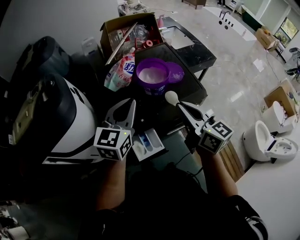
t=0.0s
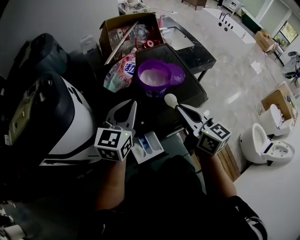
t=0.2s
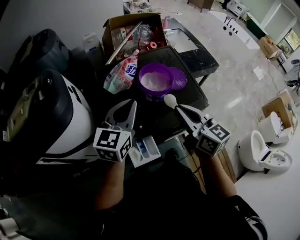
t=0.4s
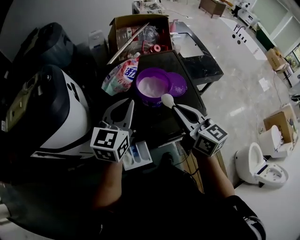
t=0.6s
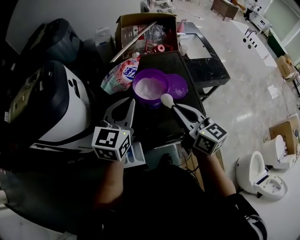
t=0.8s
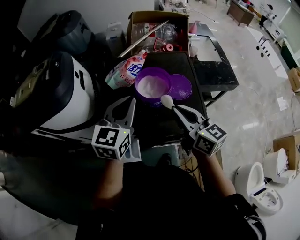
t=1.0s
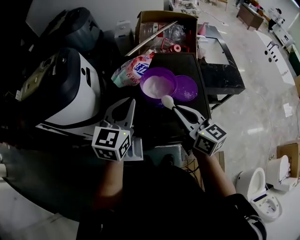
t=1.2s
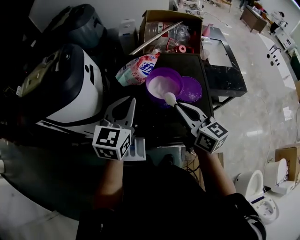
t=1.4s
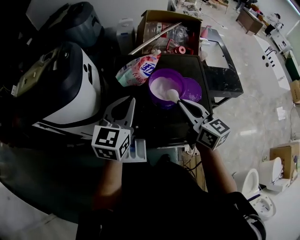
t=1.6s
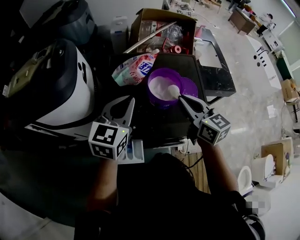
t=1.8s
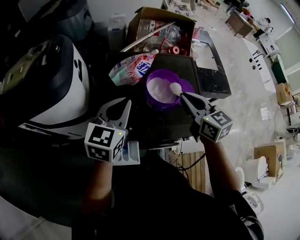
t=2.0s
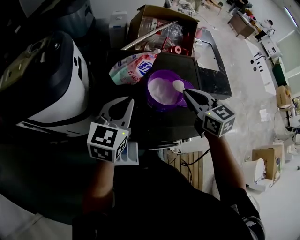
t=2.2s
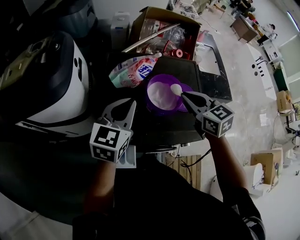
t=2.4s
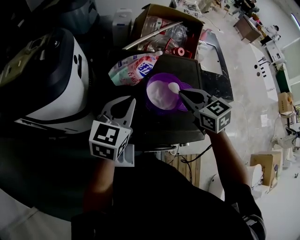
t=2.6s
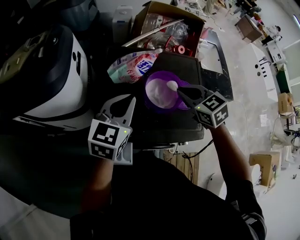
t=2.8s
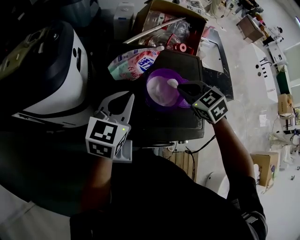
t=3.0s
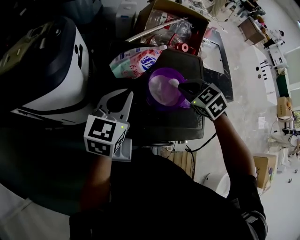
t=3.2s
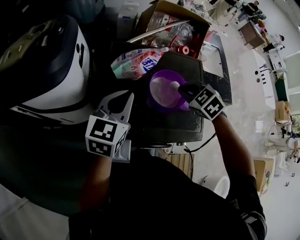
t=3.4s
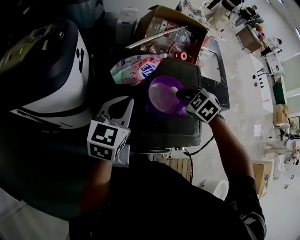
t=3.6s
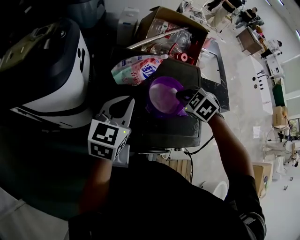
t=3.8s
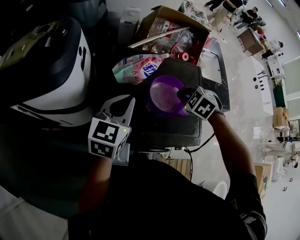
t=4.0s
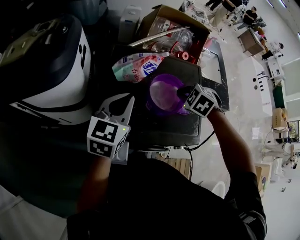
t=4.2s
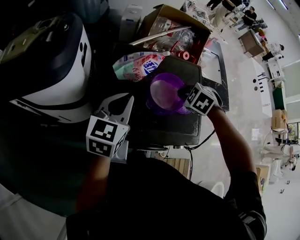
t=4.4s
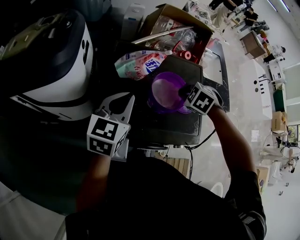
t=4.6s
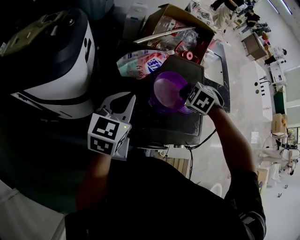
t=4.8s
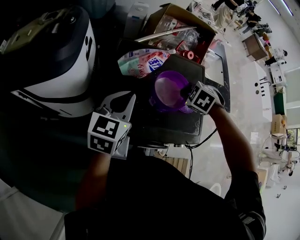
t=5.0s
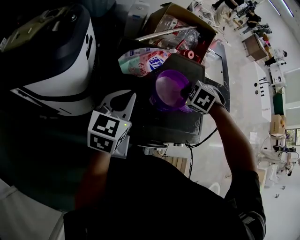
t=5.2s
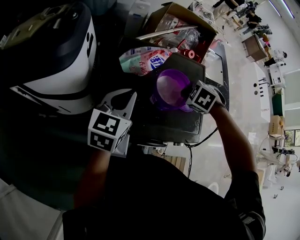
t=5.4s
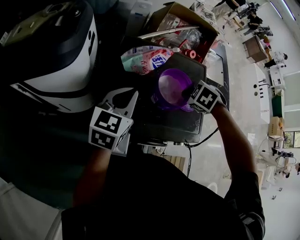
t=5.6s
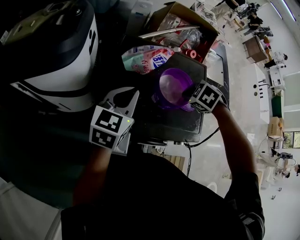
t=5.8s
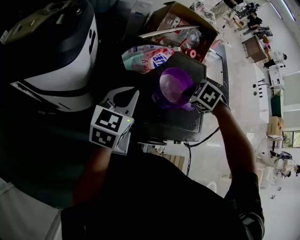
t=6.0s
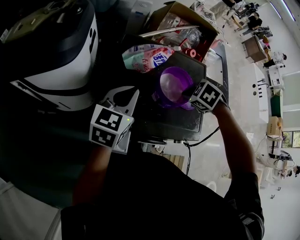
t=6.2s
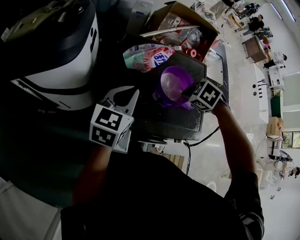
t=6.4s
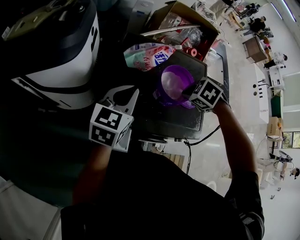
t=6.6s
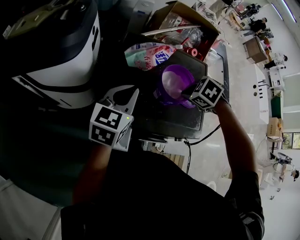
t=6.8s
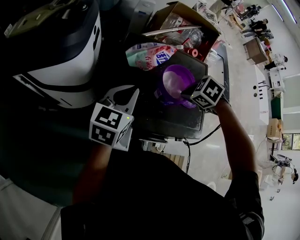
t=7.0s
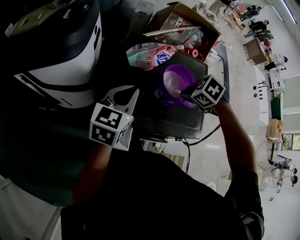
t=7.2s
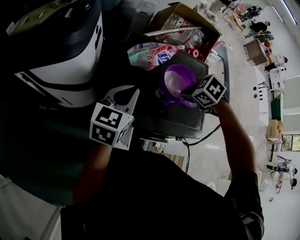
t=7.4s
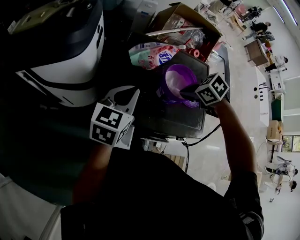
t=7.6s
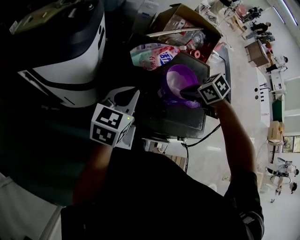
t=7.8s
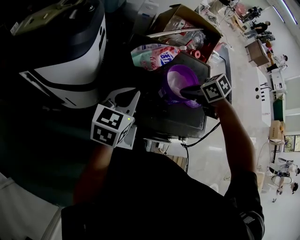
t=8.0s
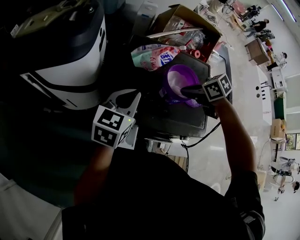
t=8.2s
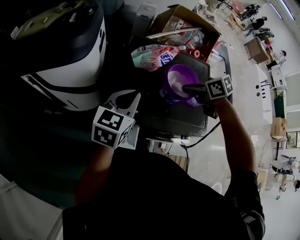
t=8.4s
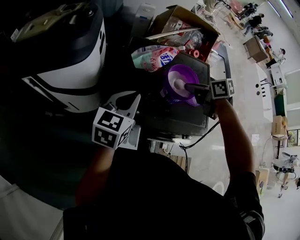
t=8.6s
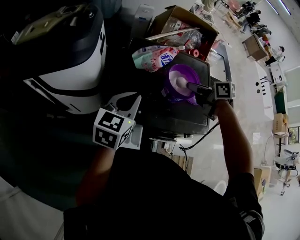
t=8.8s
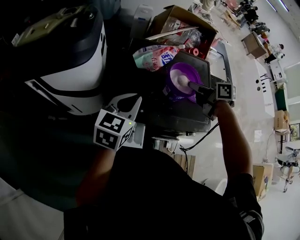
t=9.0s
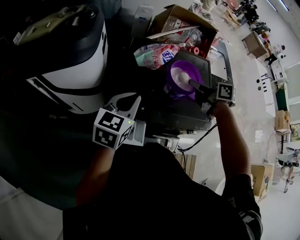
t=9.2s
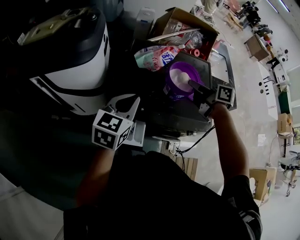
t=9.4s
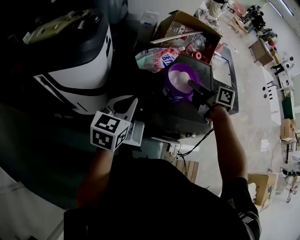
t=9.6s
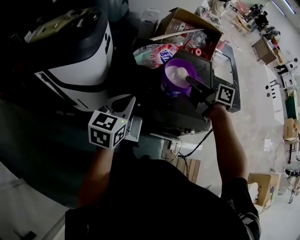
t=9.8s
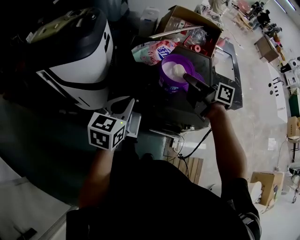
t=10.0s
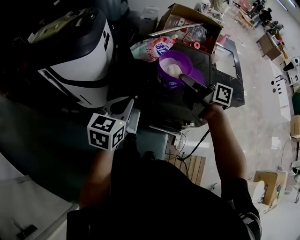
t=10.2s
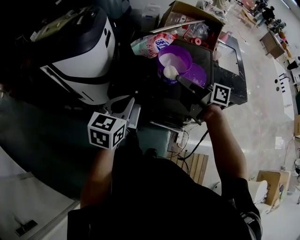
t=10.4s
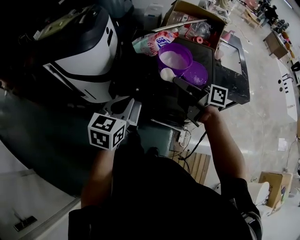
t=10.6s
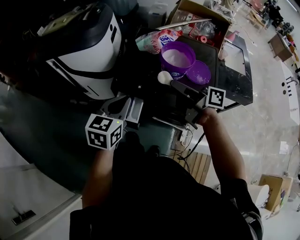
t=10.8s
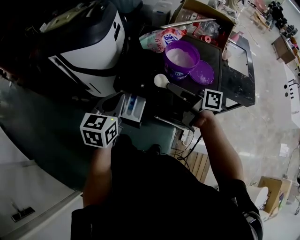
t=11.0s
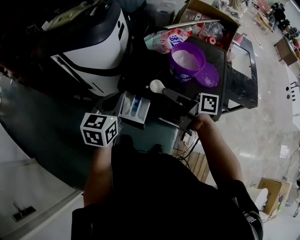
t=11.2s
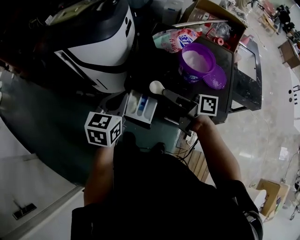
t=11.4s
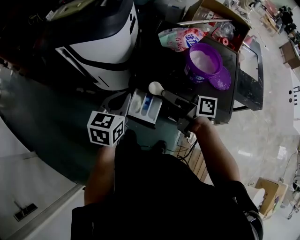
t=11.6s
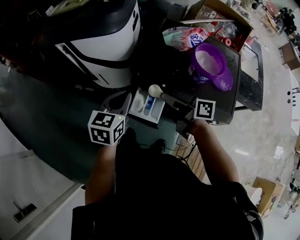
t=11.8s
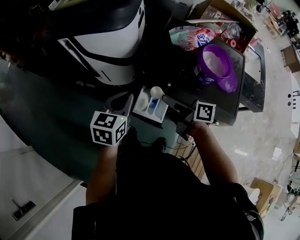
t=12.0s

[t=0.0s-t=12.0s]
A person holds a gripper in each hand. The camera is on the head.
t=0.0s to t=1.6s: The right gripper heads forward, covering approximately 15 cm, and changes its angle by approximately 20 degrees, while the left gripper travels forward by some 5 cm, goes to the right and returns, some 5 cm each way, and turns by about 20 degrees.
t=1.6s to t=3.0s: The right gripper is displaced forward and downward by some 10 cm, and tilts its fingers approximately 40 degrees downward, while the left gripper moves about 5 cm.
t=3.0s to t=4.4s: The right gripper shifts roughly 5 cm downward, and changes its angle by roughly 30 degrees.
t=4.4s to t=6.0s: The grippers stay close to where they were, moving slightly.
t=6.0s to t=7.6s: The right gripper changes its angle by approximately 20 degrees.
t=7.6s to t=9.0s: The right gripper angles its fingers upward, by roughly 40 degrees.
t=9.0s to t=10.4s: The right gripper travels backward and upward by some 10 cm, and points its fingers some 30 degrees further upward. The left gripper is displaced backward by some 10 cm.
t=10.4s to t=12.0s: Both grippers travel together to the left and downward, some 20 cm.

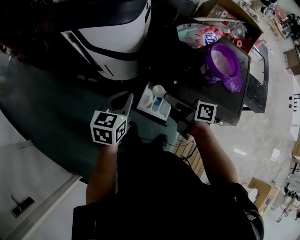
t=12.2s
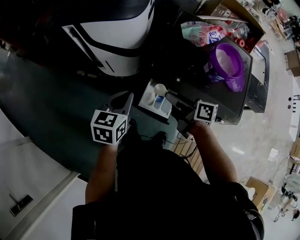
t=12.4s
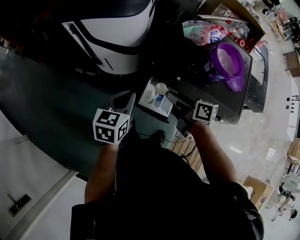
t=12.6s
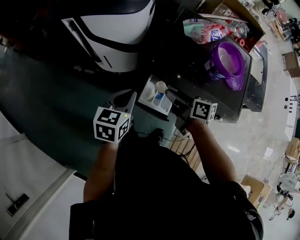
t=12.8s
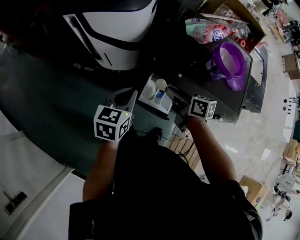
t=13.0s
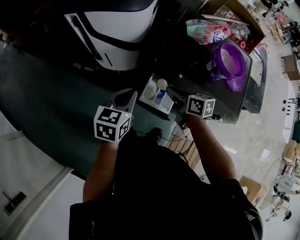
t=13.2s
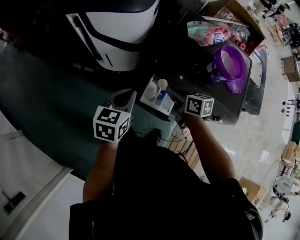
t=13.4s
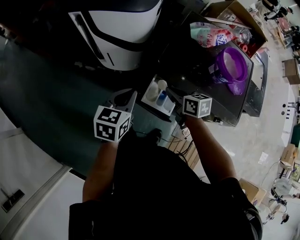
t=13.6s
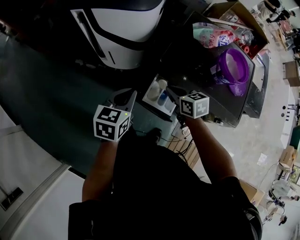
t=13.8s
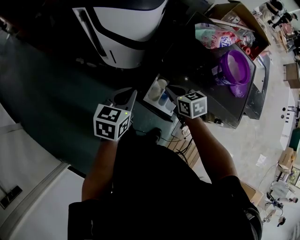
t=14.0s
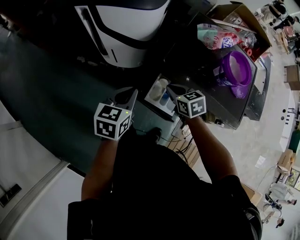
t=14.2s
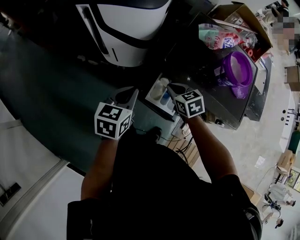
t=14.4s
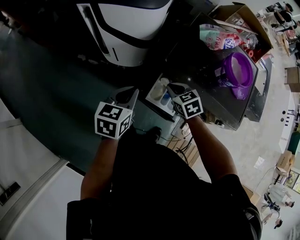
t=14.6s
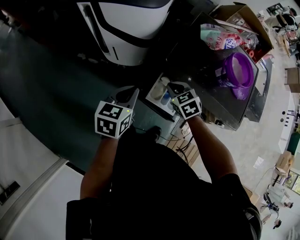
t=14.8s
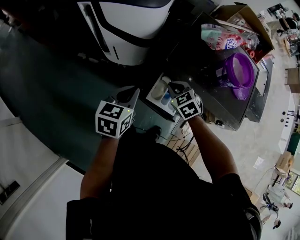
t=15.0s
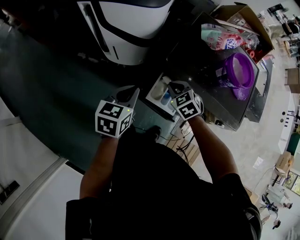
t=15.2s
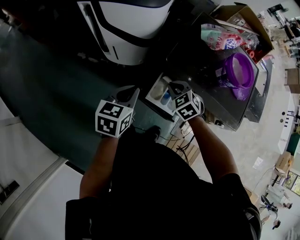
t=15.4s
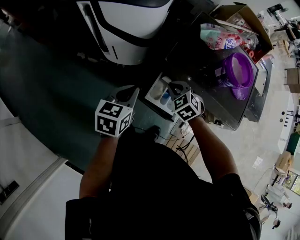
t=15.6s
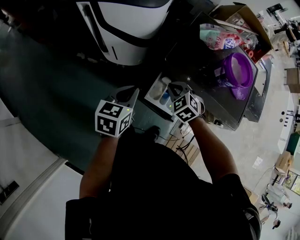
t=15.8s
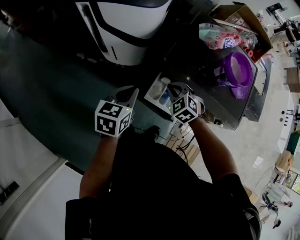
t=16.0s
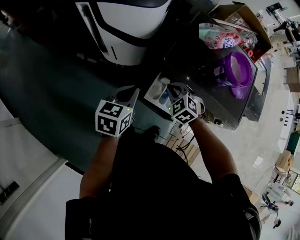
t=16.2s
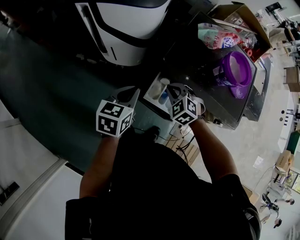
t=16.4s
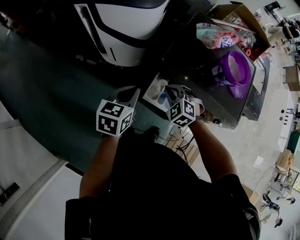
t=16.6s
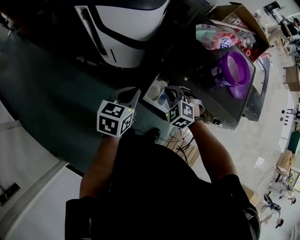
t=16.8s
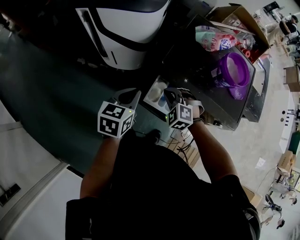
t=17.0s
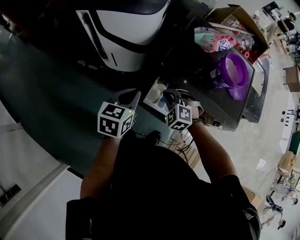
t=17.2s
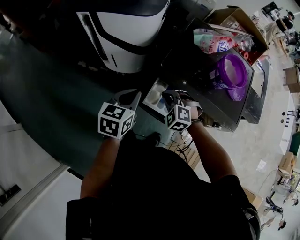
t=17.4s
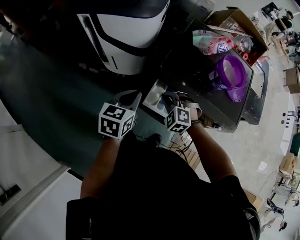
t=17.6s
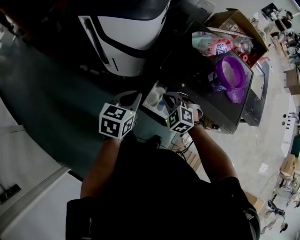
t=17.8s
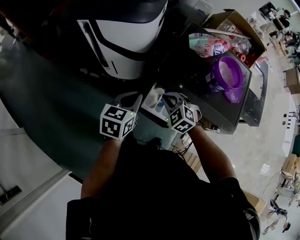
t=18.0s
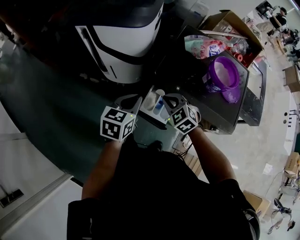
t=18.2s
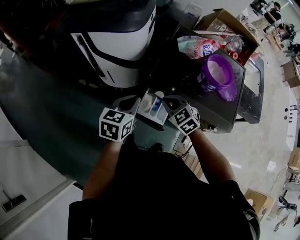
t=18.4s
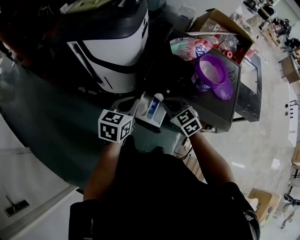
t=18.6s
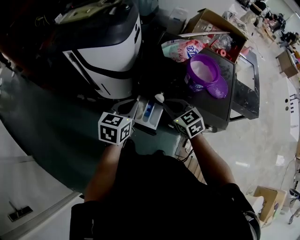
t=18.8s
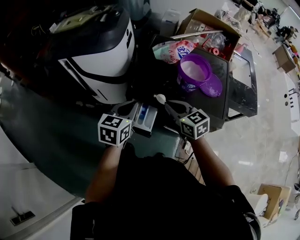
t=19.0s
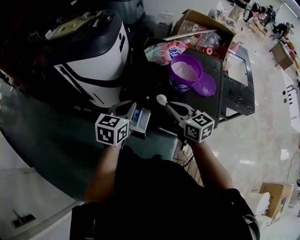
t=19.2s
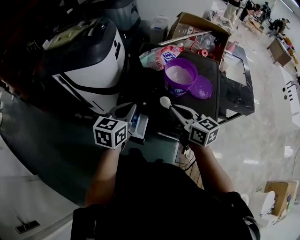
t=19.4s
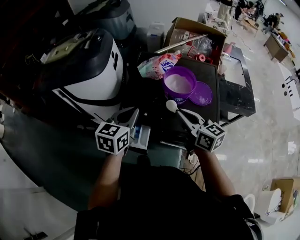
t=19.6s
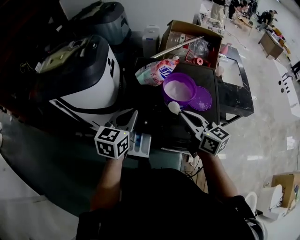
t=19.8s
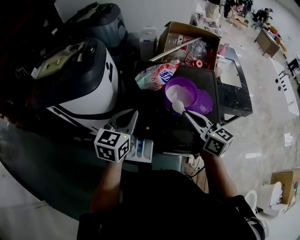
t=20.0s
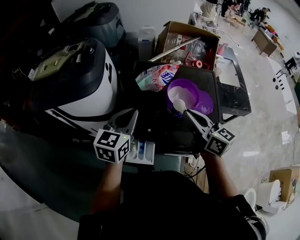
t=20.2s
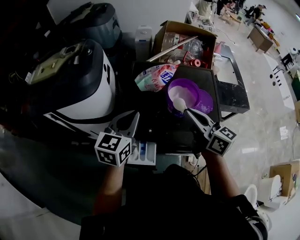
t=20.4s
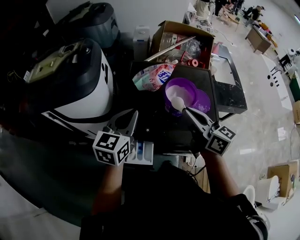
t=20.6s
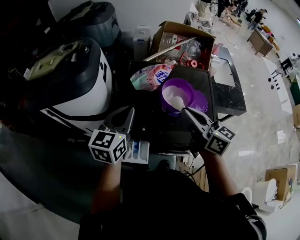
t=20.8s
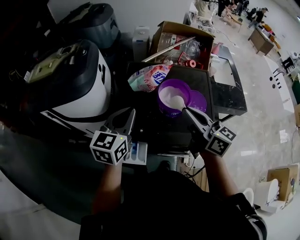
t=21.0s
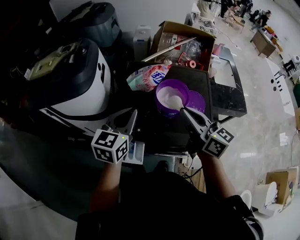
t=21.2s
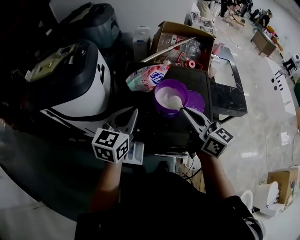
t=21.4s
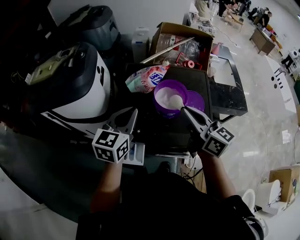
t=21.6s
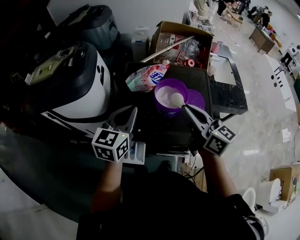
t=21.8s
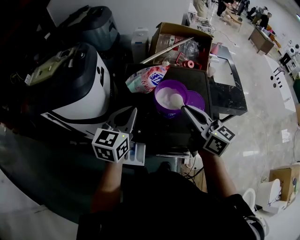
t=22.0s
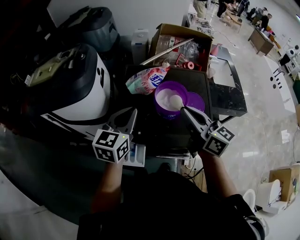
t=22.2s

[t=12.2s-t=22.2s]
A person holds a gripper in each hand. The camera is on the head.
t=12.2s to t=13.6s: The right gripper shifts roughly 10 cm downward, and turns by roughly 40 degrees.
t=13.6s to t=15.0s: The right gripper rolls counterclockwise, seen from behind, by about 40 degrees.
t=15.0s to t=16.4s: The right gripper swivels about 20 degrees.
t=16.4s to t=18.0s: The grippers move only a little.
t=18.0s to t=19.4s: The grippers both shift to the right and upward by about 20 cm. The right gripper rotates around the line of its fingers by about 60 degrees, clockwise from behind.
t=19.4s to t=20.8s: The left gripper heads forward and upward, covering about 10 cm, while the right gripper goes roughly 10 cm upward and forward.
t=20.8s to t=22.2s: The grippers stay close to where they were, moving slightly.

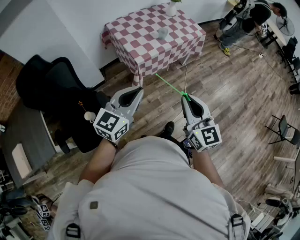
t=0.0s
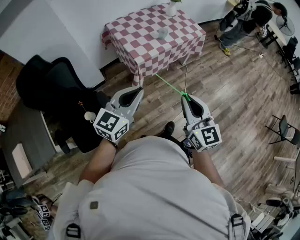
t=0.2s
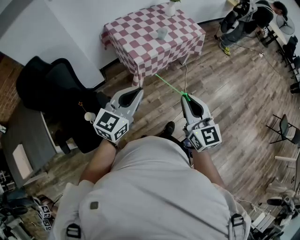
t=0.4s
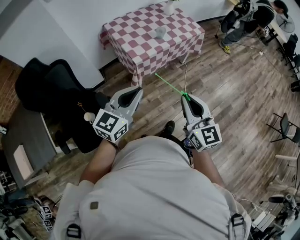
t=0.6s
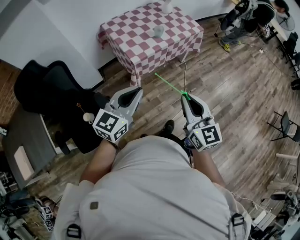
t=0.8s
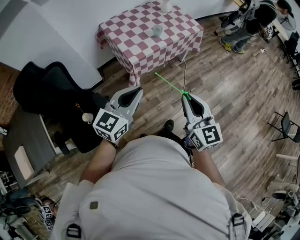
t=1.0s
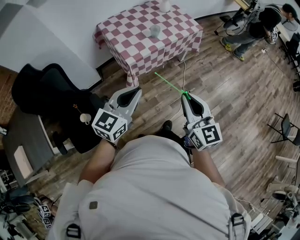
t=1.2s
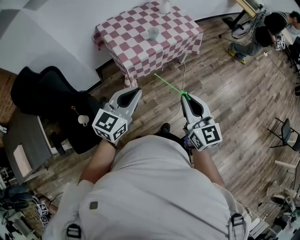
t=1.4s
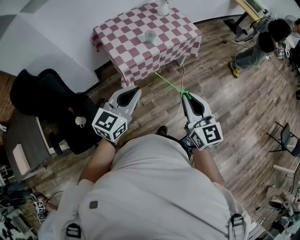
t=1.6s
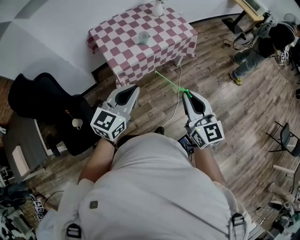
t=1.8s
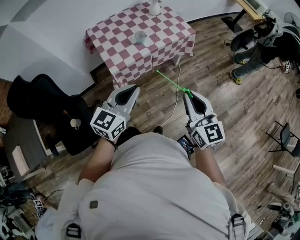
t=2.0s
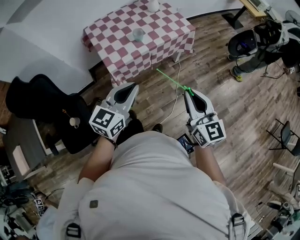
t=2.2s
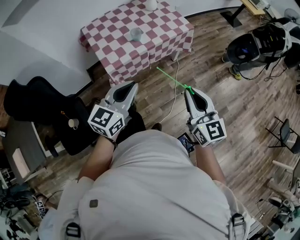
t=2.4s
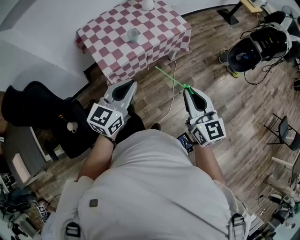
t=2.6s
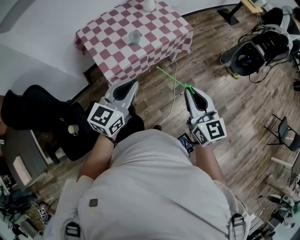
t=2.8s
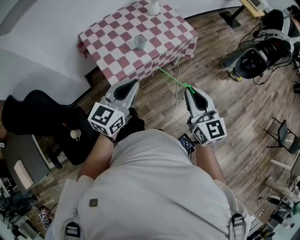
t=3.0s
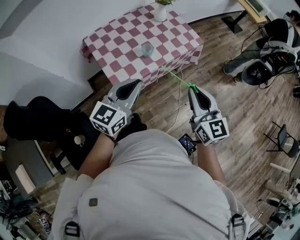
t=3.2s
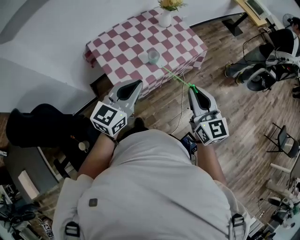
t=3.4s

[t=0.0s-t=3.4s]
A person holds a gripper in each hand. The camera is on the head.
t=0.0s to t=1.6s: Both grippers travel together to the right and forward, approximately 20 cm.
t=1.6s to t=3.4s: The two grippers go about 25 cm forward.
